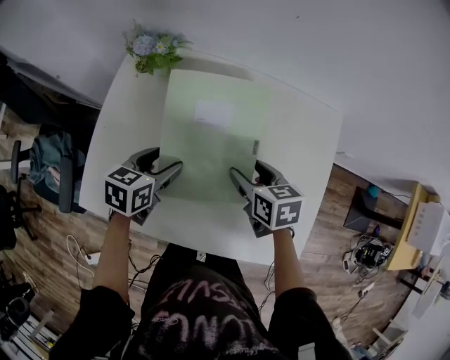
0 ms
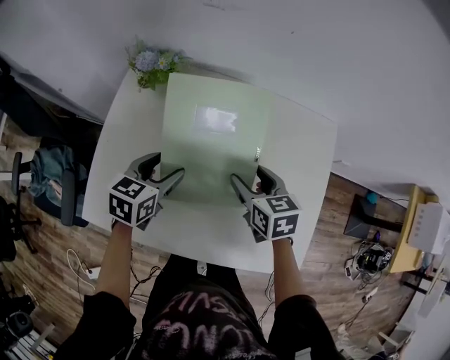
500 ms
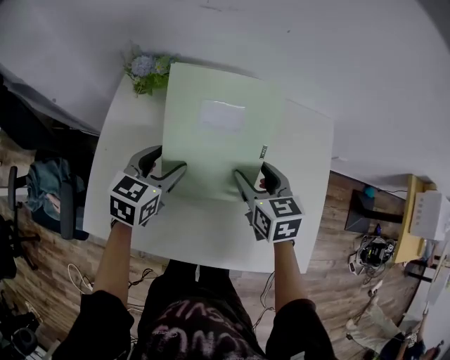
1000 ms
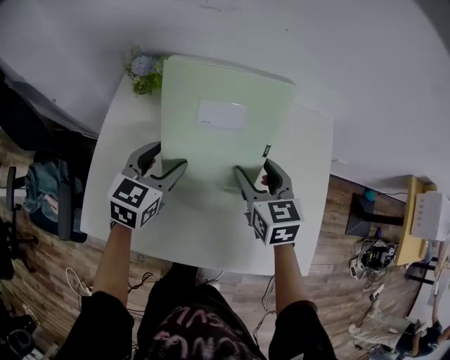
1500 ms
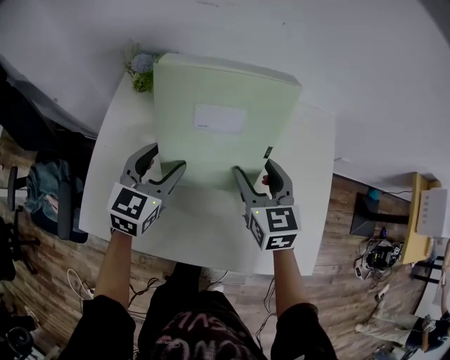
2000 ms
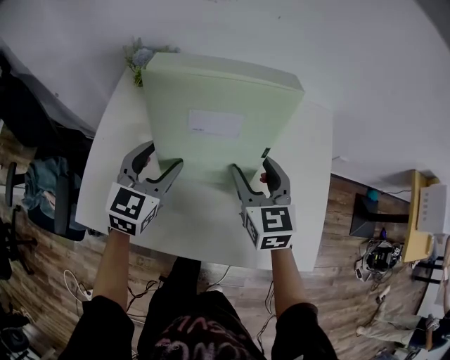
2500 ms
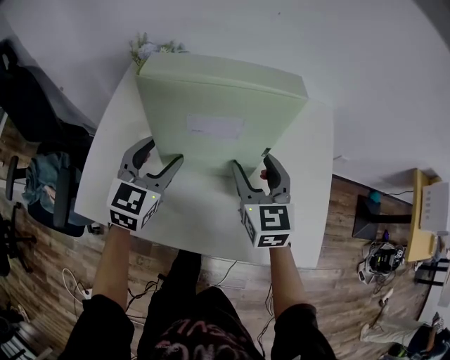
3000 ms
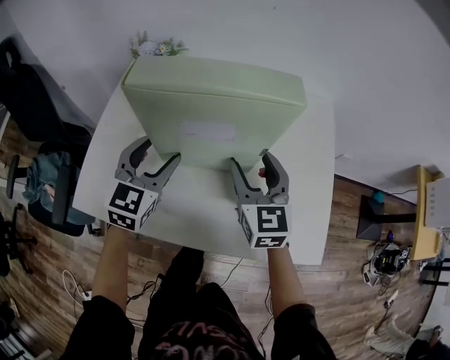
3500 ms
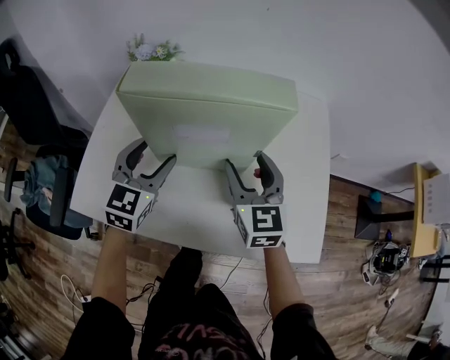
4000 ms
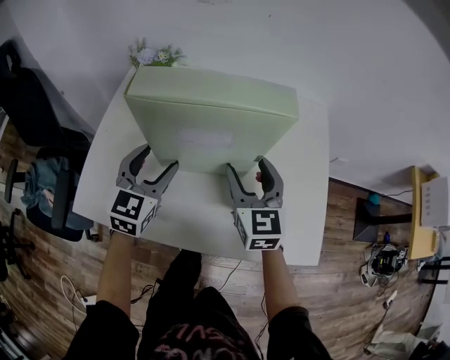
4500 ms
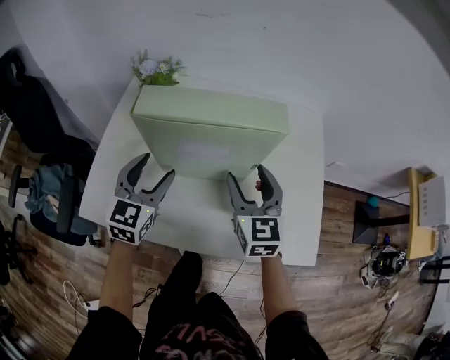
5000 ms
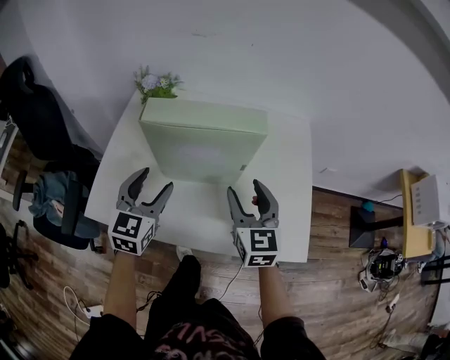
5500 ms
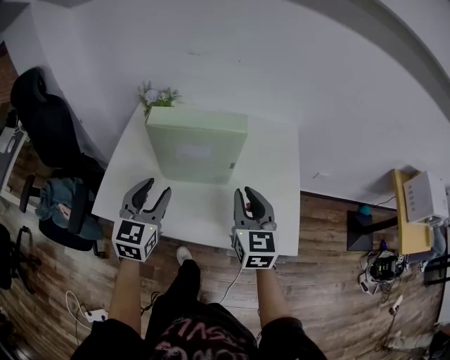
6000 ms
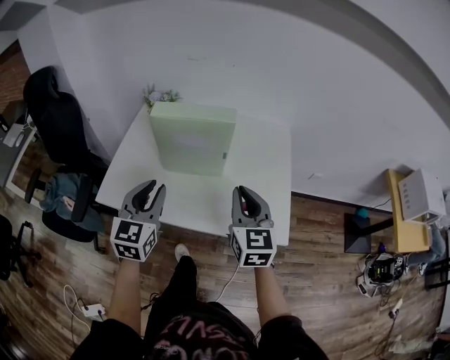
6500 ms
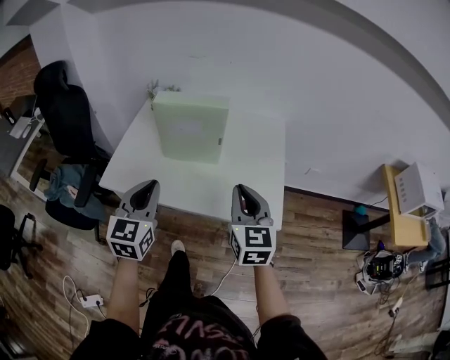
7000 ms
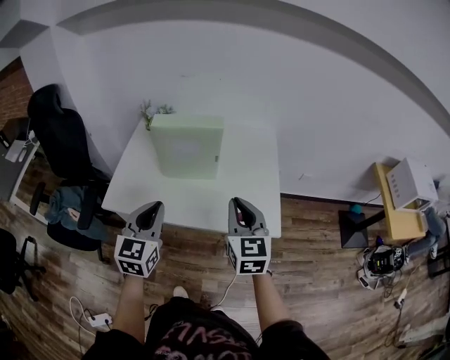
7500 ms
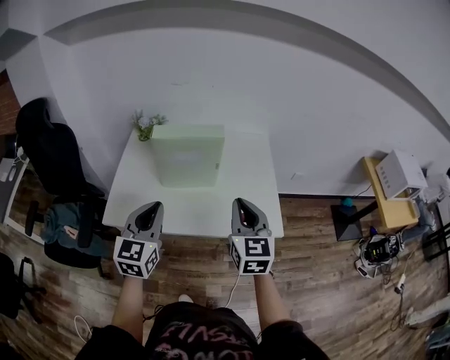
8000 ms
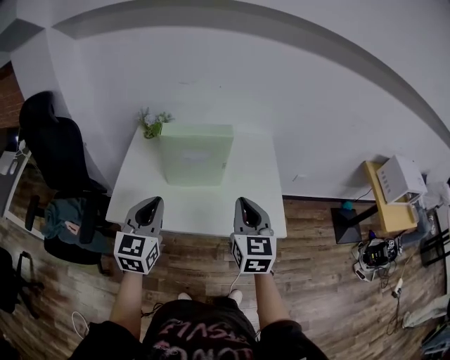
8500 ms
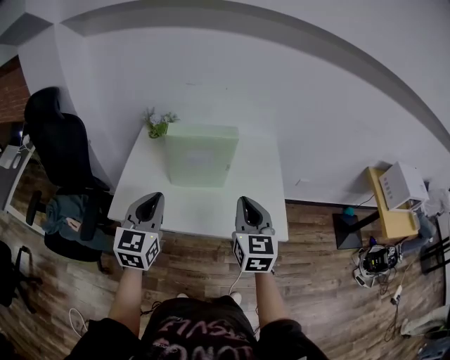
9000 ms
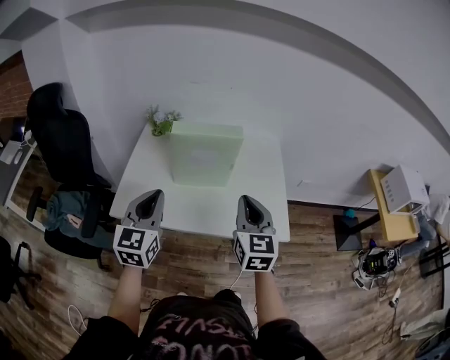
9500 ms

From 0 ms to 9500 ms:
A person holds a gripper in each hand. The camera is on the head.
From 0 ms to 2000 ms: Both grippers travel together upward, about 5 cm. The right gripper changes its angle by some 30 degrees; the left gripper rotates some 30 degrees.
From 2000 ms to 4000 ms: The two grippers go about 5 cm backward.
From 4000 ms to 5500 ms: The two grippers go roughly 5 cm backward.
From 5500 ms to 7500 ms: The two grippers go roughly 25 cm backward and upward. The right gripper closes. Meanwhile the left gripper closes up.
From 7500 ms to 9500 ms: The right gripper ends up roughly 5 cm from where it was, while the left gripper moves to the left, roughly 10 cm.

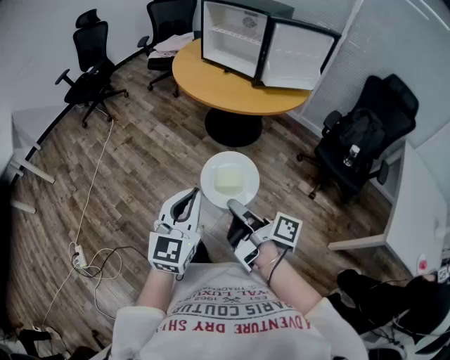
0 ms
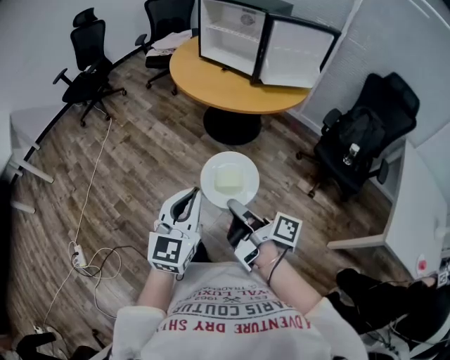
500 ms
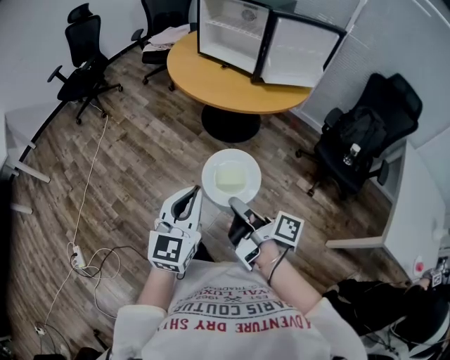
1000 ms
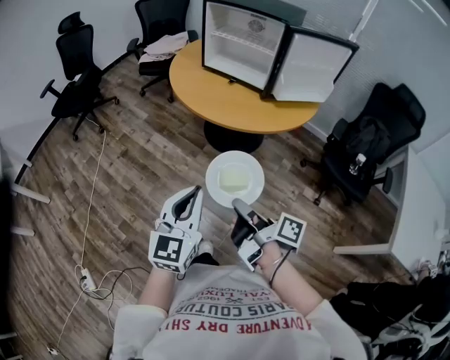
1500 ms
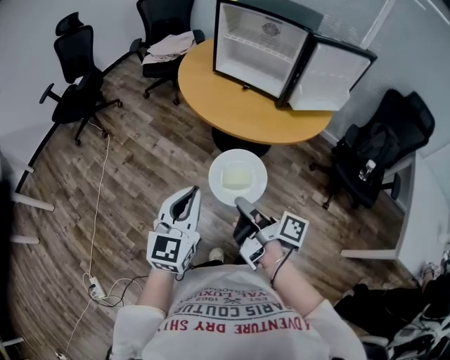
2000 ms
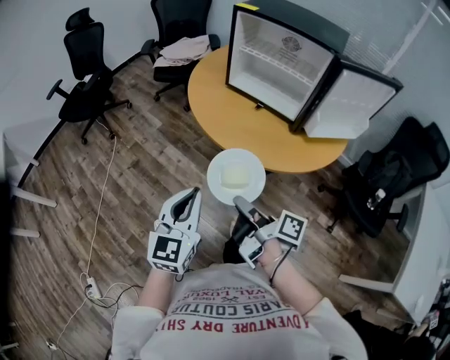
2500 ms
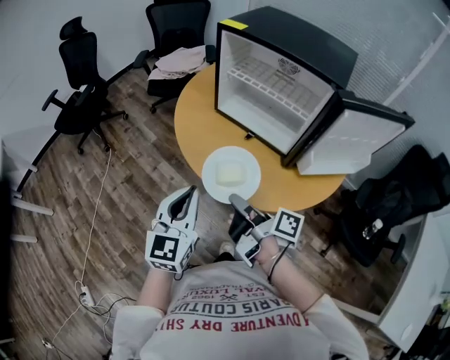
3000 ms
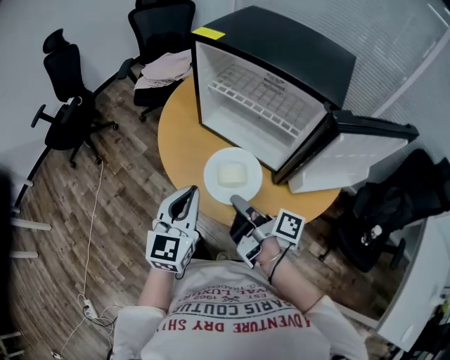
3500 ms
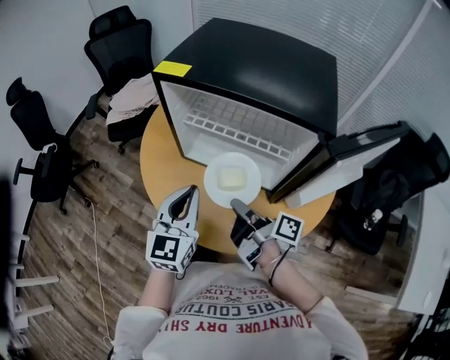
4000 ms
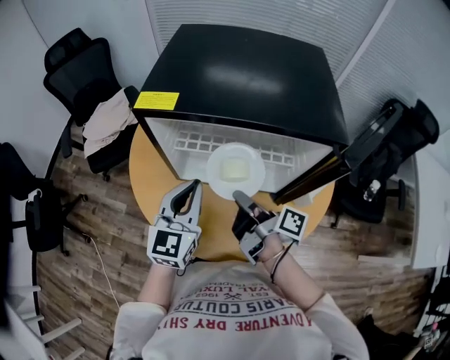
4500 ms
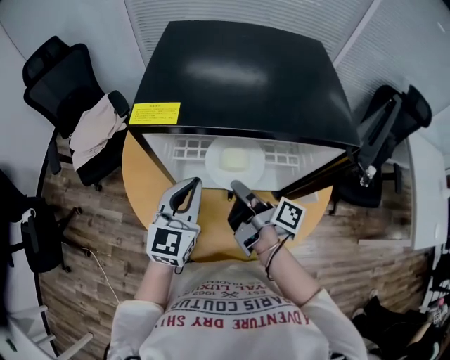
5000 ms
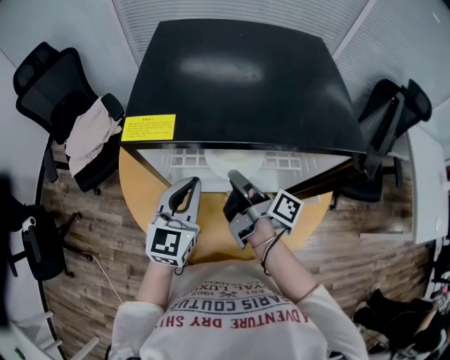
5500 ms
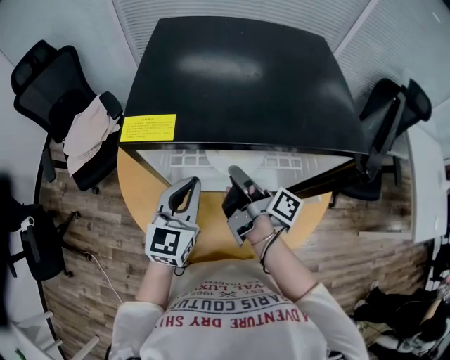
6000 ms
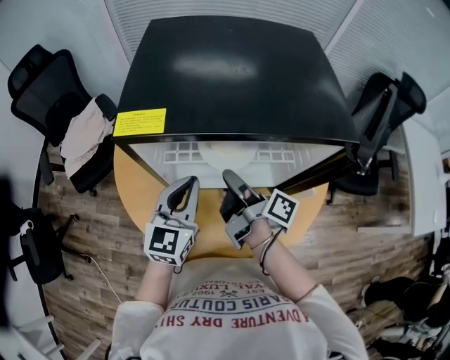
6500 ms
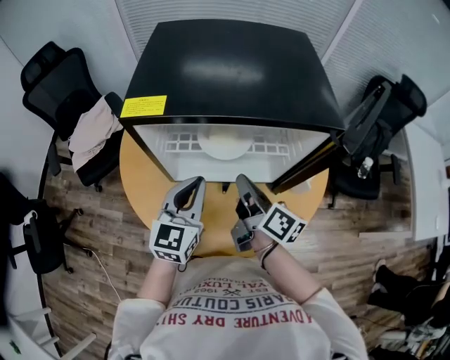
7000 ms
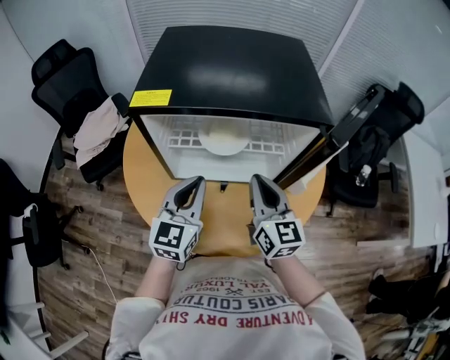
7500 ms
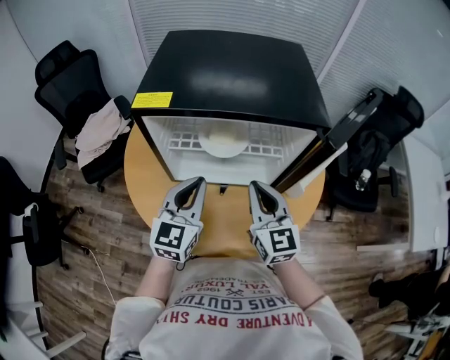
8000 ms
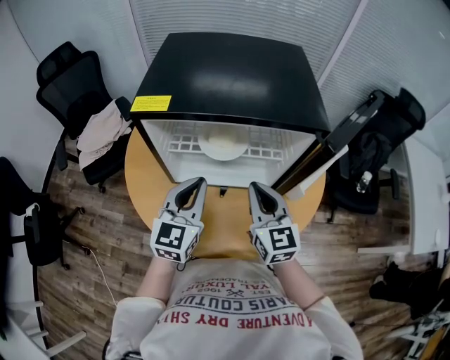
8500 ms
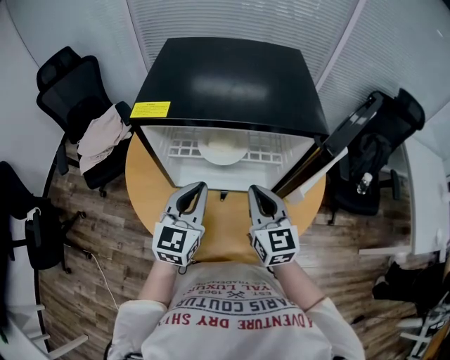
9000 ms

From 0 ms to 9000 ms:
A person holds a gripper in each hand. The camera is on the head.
From 0 ms to 2000 ms: The left gripper changes place by about 30 cm.
From 2000 ms to 4500 ms: The left gripper changes place by roughly 60 cm, and swivels approximately 20 degrees.

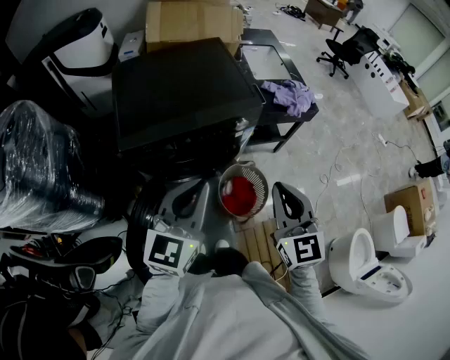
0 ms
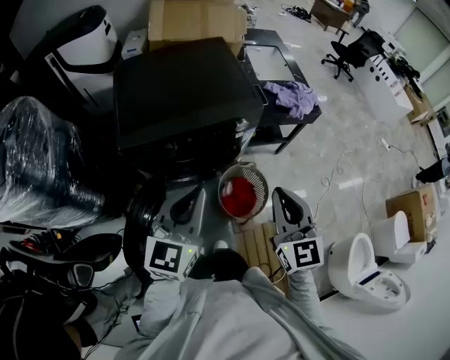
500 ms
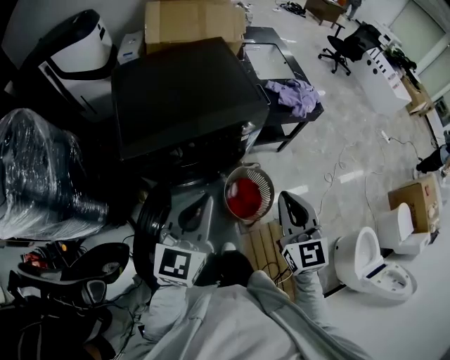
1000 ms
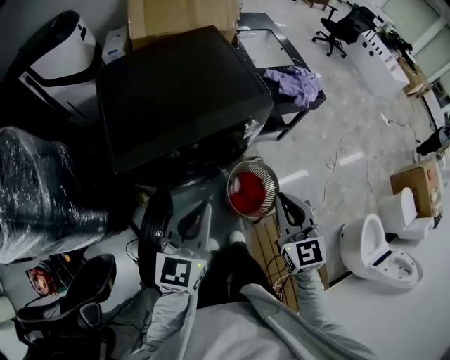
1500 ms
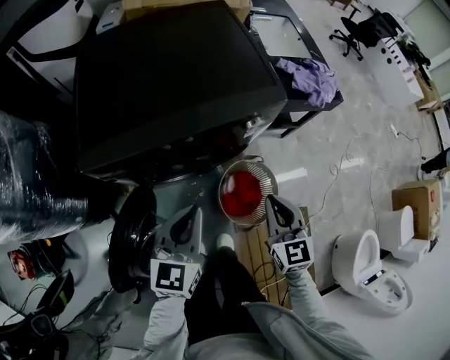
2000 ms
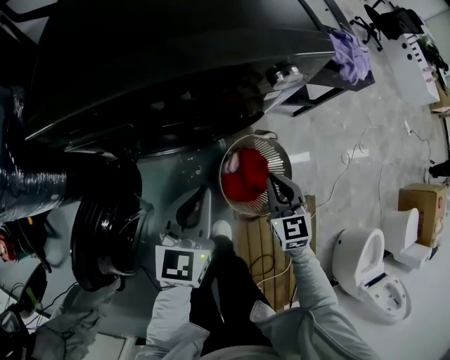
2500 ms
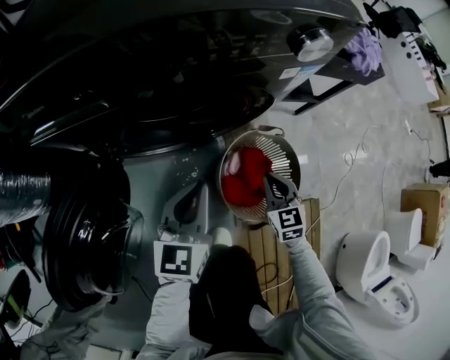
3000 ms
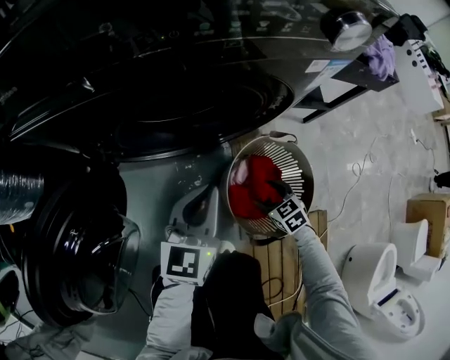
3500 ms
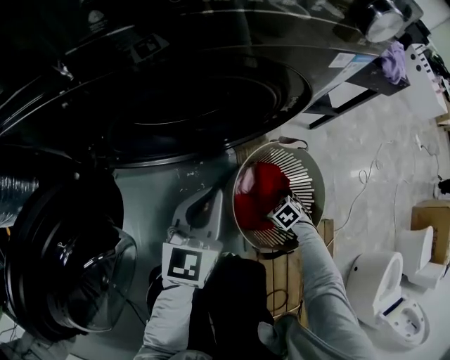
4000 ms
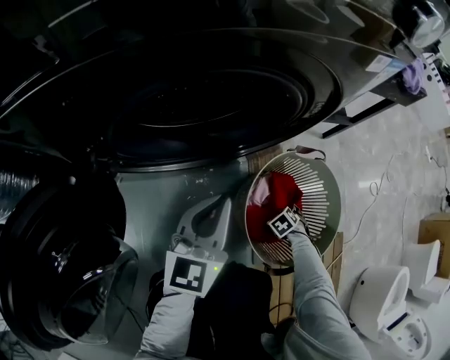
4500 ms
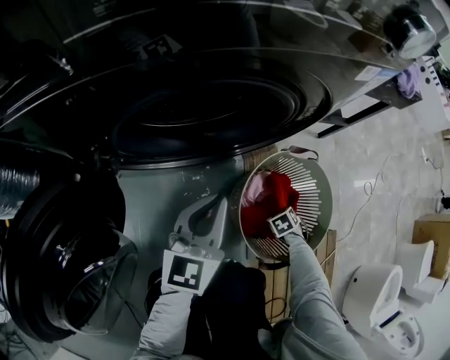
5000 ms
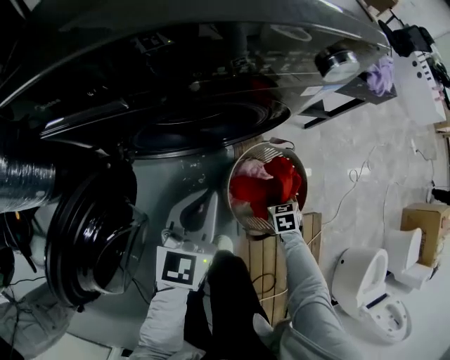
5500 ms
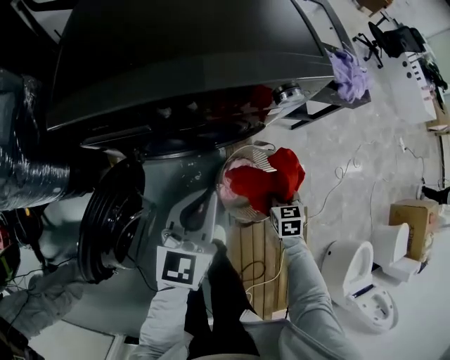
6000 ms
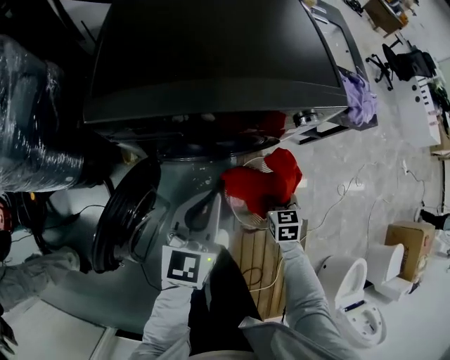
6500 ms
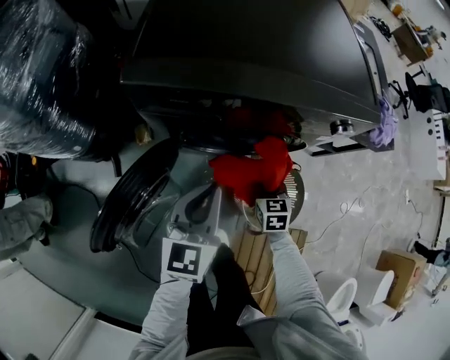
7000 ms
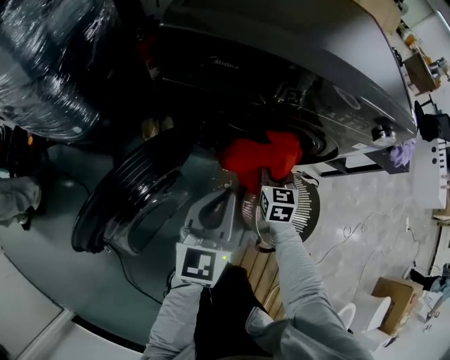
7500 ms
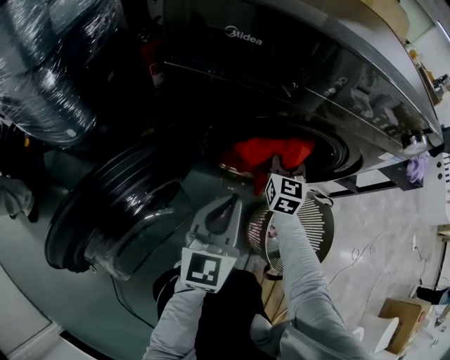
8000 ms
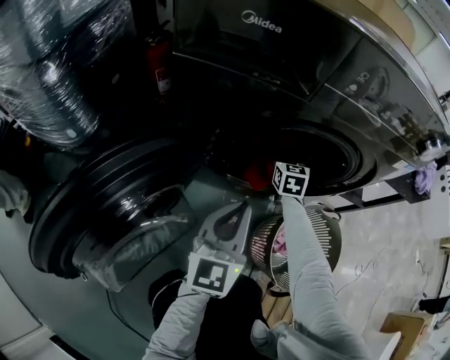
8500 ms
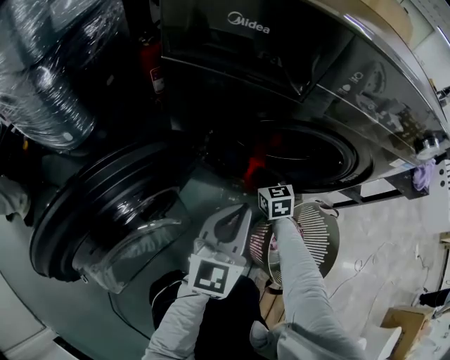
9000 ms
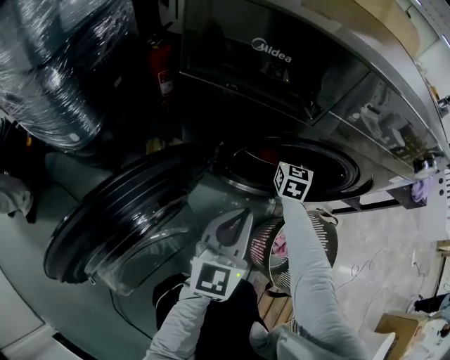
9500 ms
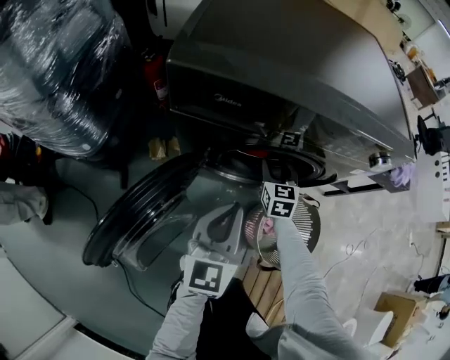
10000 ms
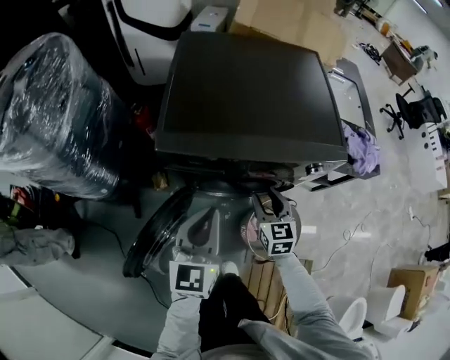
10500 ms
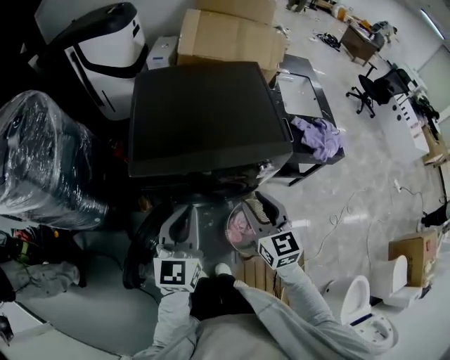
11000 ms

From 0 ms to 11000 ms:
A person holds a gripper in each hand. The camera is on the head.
From 0 ms to 2000 ms: The two grippers go some 25 cm downward and forward.
From 2000 ms to 3500 ms: The right gripper travels downward by approximately 50 cm, tilts its fingers about 30 degrees downward, and opens; the left gripper goes some 35 cm downward.
From 3500 ms to 5500 ms: The left gripper goes some 5 cm upward. The right gripper moves roughly 25 cm downward and comes back, changes its angle by approximately 30 degrees, and closes up.
From 5500 ms to 7500 ms: The right gripper shifts some 35 cm to the left, upward and forward, and rotates some 30 degrees, while the left gripper heads to the left and backward, covering about 10 cm, moves some 20 cm upward and comes back, and turns by about 20 degrees.
From 7500 ms to 9000 ms: The right gripper moves downward and forward, roughly 20 cm, and opens, then closes once more. The left gripper goes roughly 10 cm downward.
From 9000 ms to 11000 ms: The grippers both shift upward by some 50 cm. The right gripper swivels some 20 degrees.
